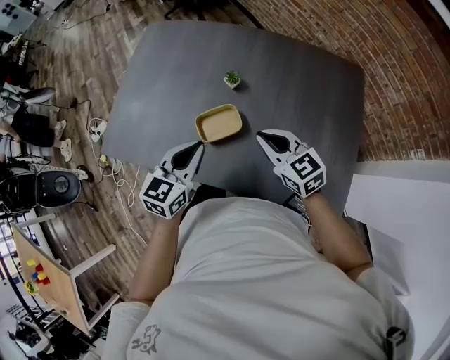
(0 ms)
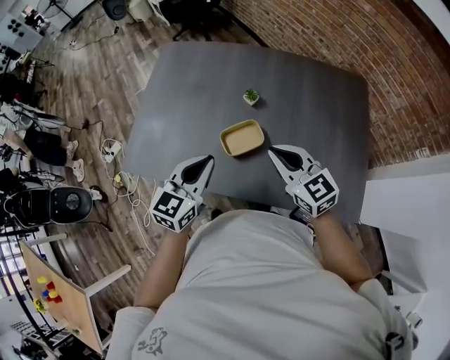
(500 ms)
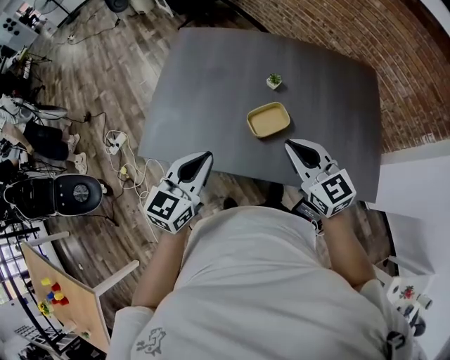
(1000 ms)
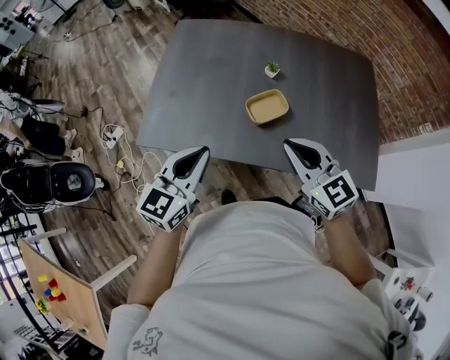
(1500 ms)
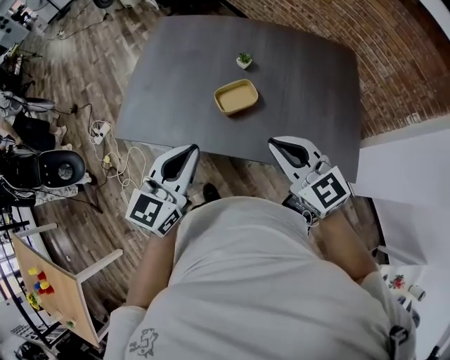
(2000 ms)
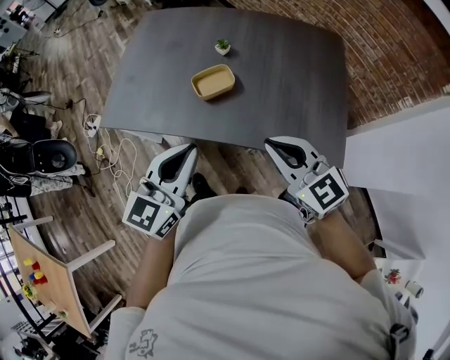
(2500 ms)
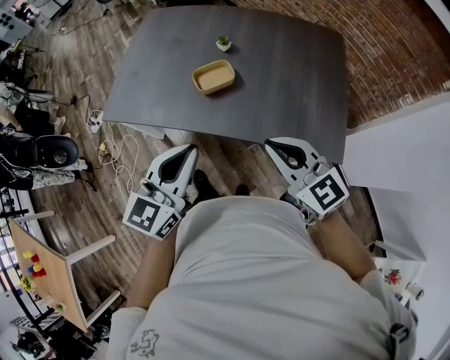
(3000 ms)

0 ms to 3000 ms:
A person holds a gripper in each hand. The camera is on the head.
0 ms to 1500 ms: Both grippers move to the left, backward and upward, about 20 cm.
1500 ms to 3000 ms: The grippers both shift to the right and backward by approximately 20 cm.

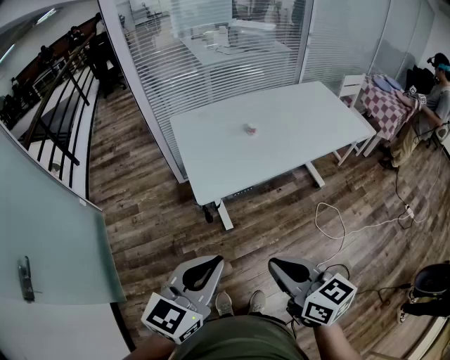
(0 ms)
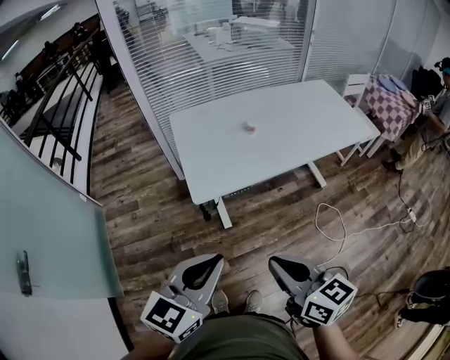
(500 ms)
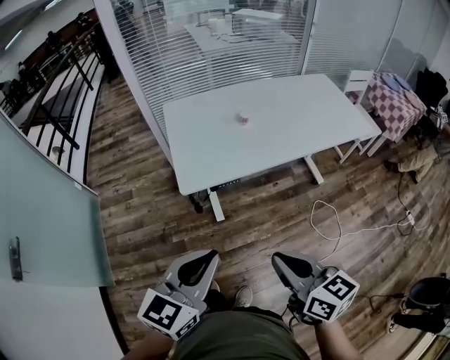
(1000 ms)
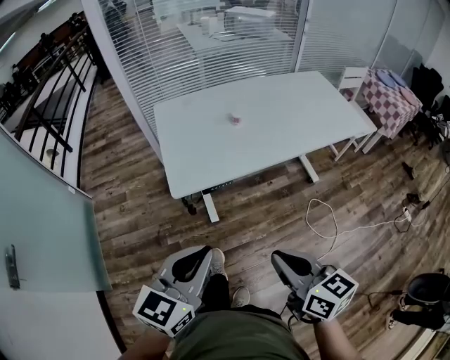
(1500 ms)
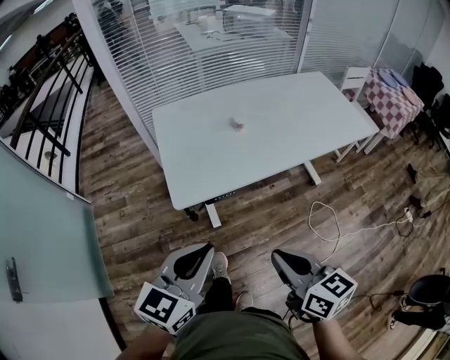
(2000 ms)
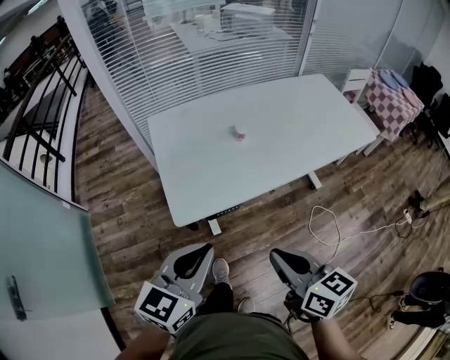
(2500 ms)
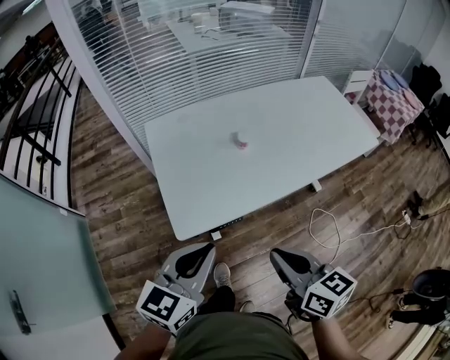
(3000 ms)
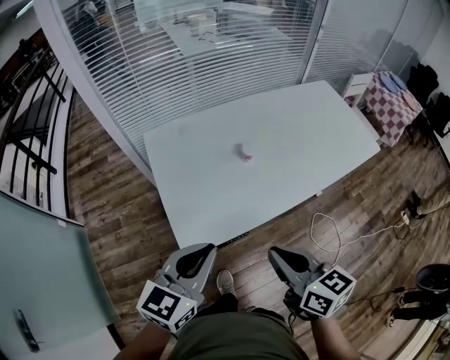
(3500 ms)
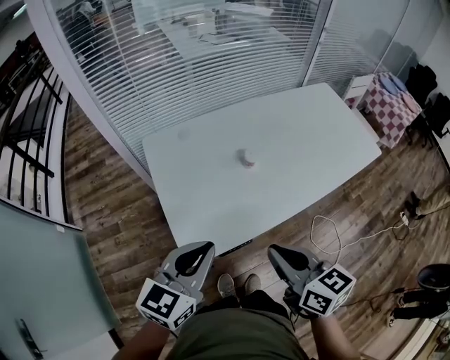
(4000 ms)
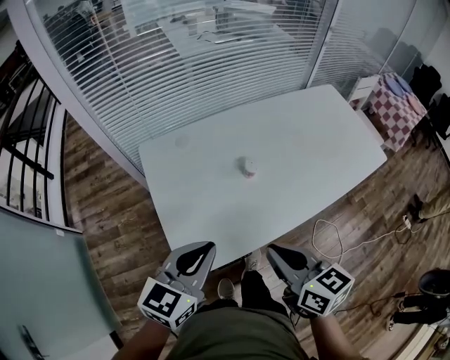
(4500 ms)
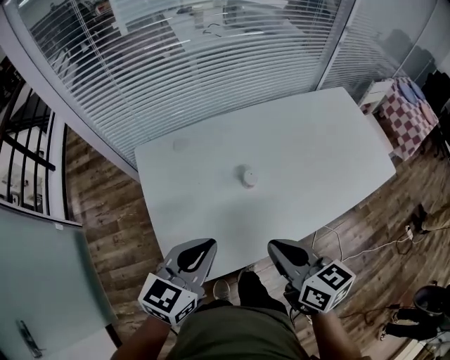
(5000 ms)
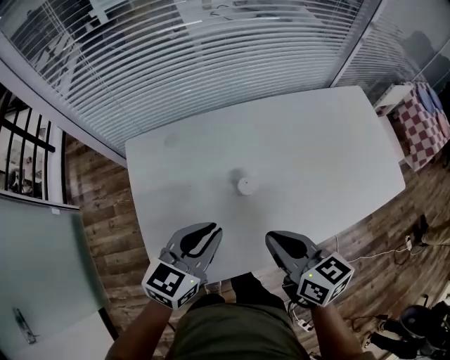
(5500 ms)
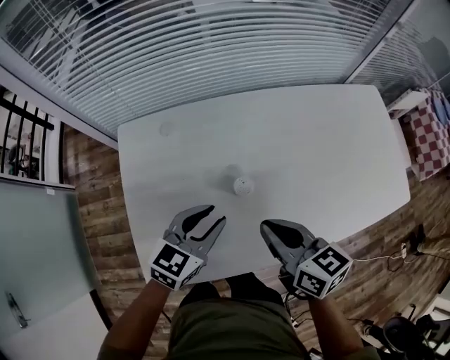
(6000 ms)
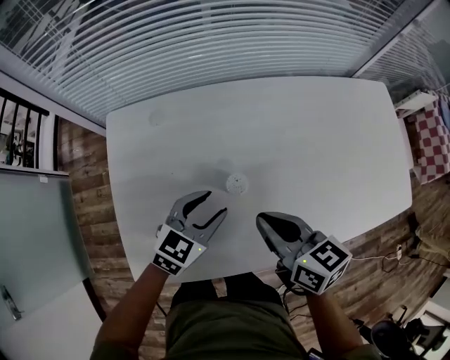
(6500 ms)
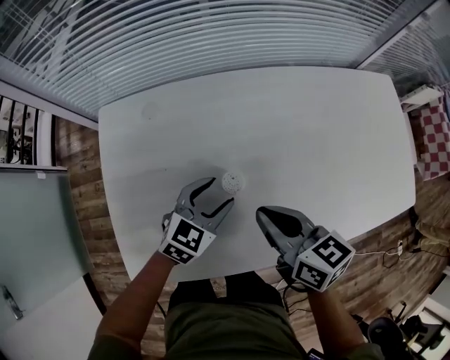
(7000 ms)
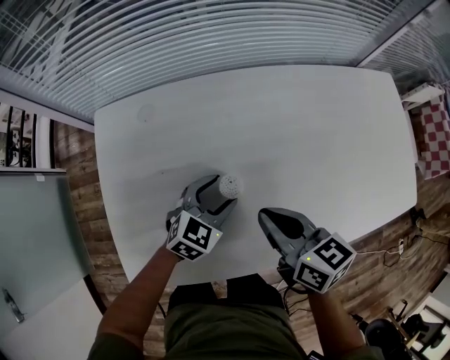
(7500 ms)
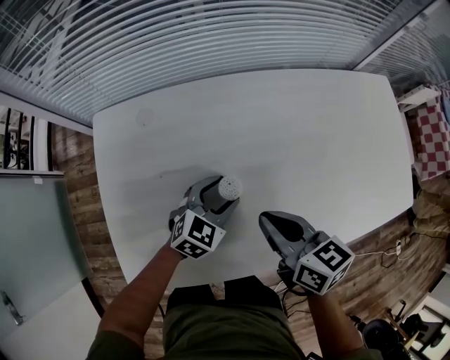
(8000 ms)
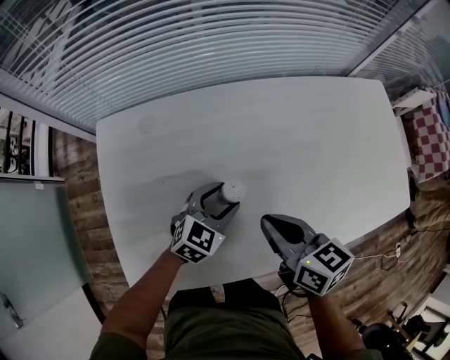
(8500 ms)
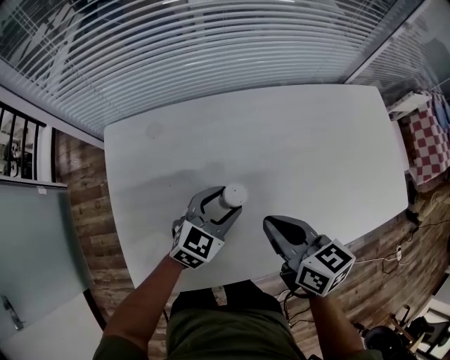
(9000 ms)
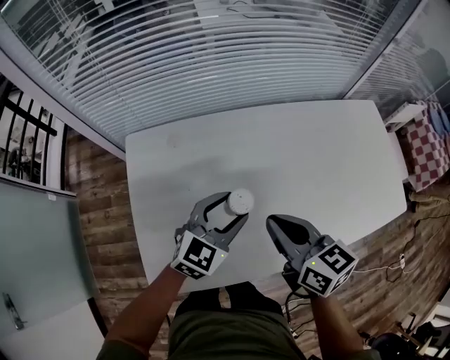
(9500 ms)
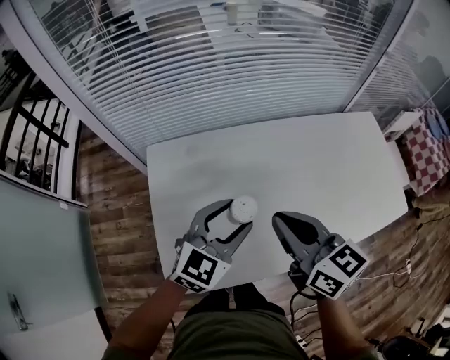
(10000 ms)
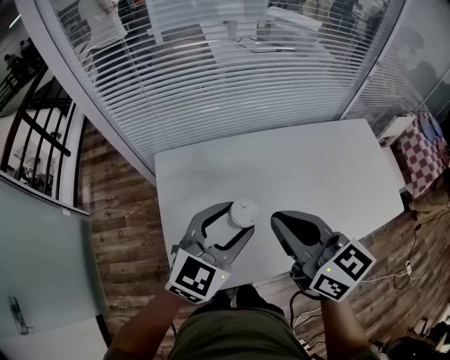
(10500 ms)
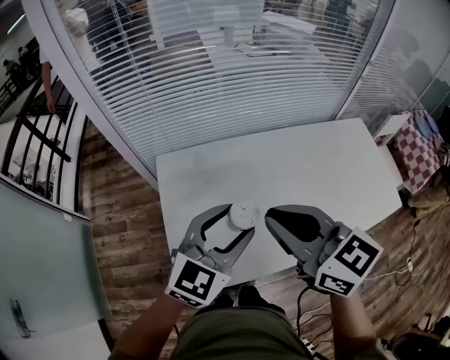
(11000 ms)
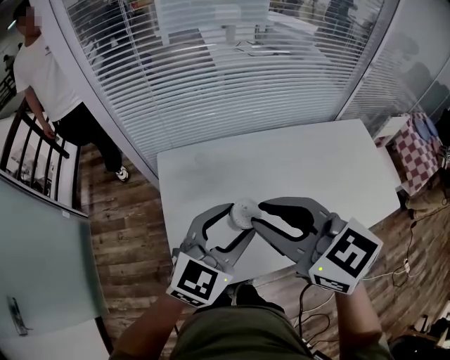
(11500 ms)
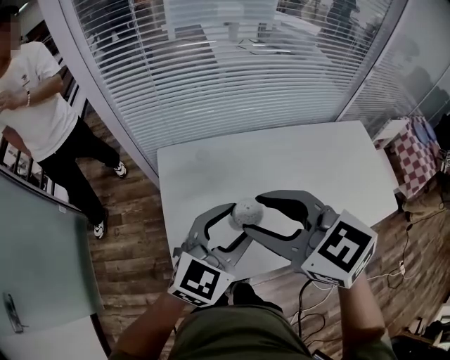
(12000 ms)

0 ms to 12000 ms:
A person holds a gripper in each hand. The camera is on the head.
0 ms to 2000 ms: The left gripper shifts approximately 10 cm forward and to the right. Meanwhile the right gripper moves to the right and forward, approximately 15 cm.
2000 ms to 4000 ms: Both grippers move forward, about 20 cm.
4000 ms to 6000 ms: The left gripper heads forward, downward and to the right, covering some 30 cm, and opens its fingers. The right gripper goes roughly 25 cm forward.
6000 ms to 8000 ms: The left gripper moves downward, to the right and forward, approximately 15 cm, and opens, while the right gripper is displaced downward by approximately 5 cm.
8000 ms to 10000 ms: The left gripper goes about 25 cm upward, while the right gripper travels upward and to the left by about 20 cm.
10000 ms to 12000 ms: The right gripper is displaced to the left and upward by some 15 cm, changes its angle by about 30 degrees, and opens its fingers; the left gripper heads upward and backward, covering approximately 10 cm.

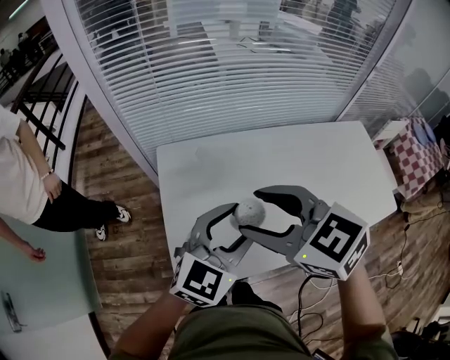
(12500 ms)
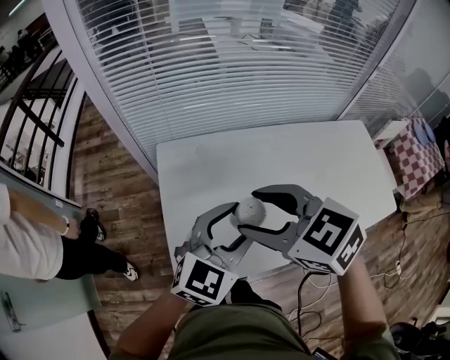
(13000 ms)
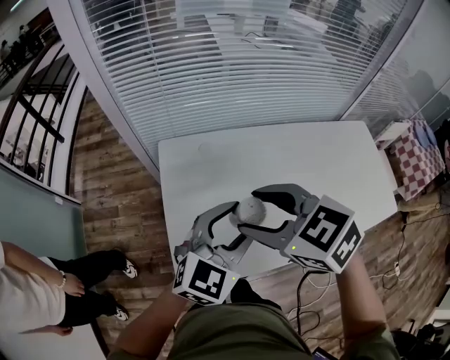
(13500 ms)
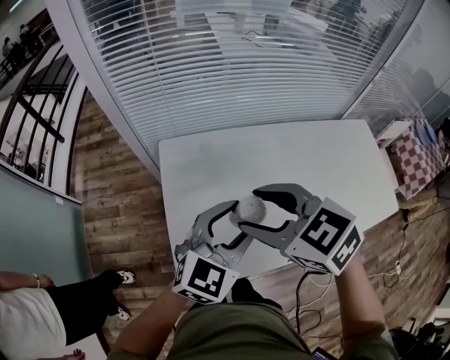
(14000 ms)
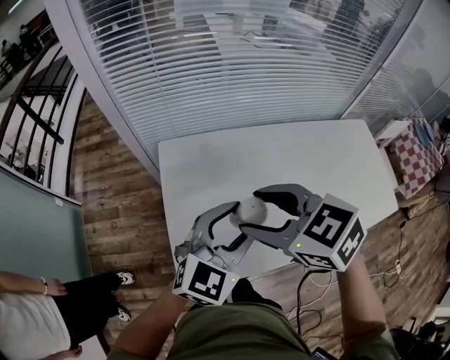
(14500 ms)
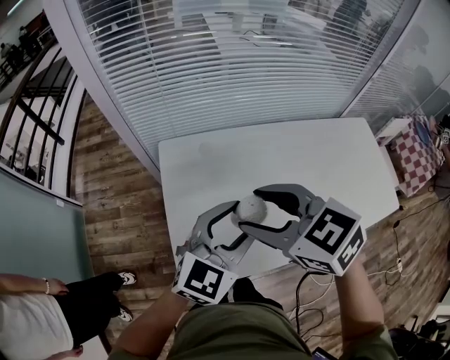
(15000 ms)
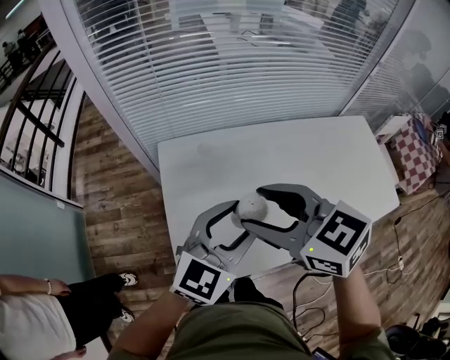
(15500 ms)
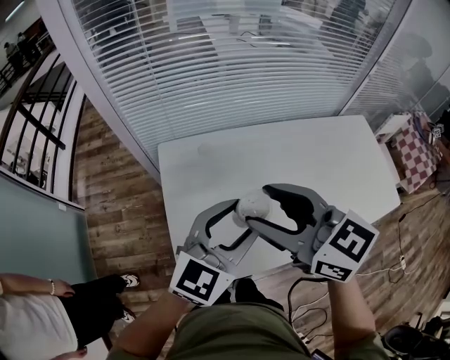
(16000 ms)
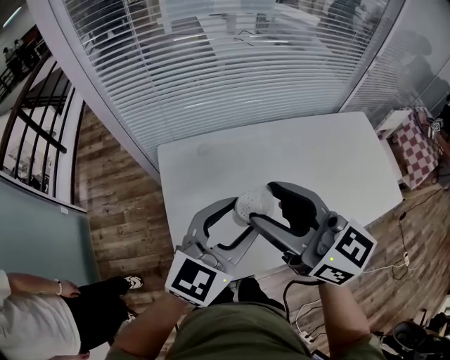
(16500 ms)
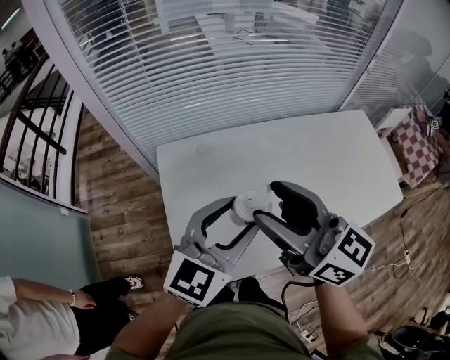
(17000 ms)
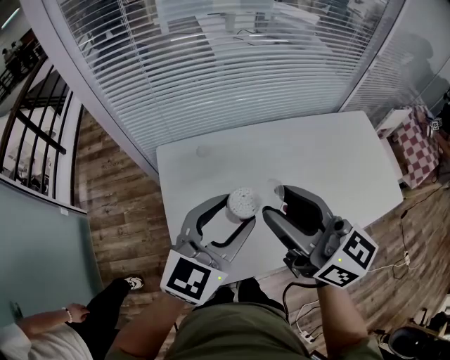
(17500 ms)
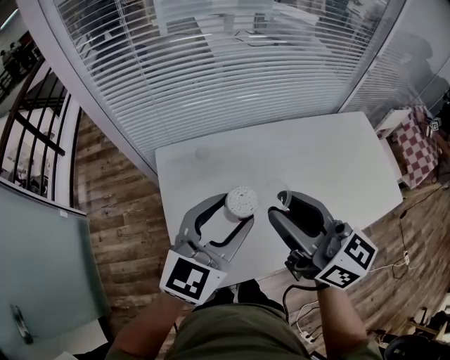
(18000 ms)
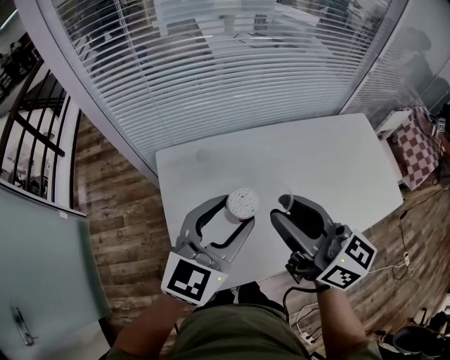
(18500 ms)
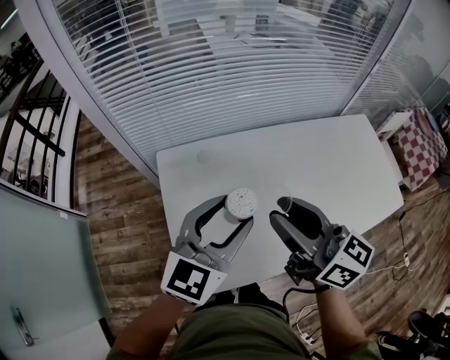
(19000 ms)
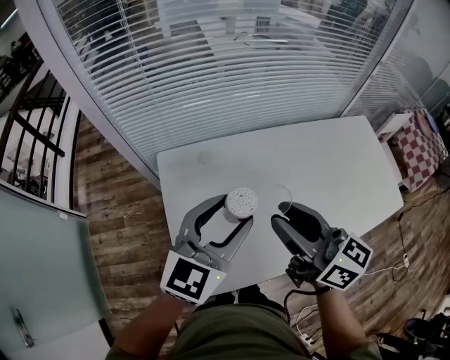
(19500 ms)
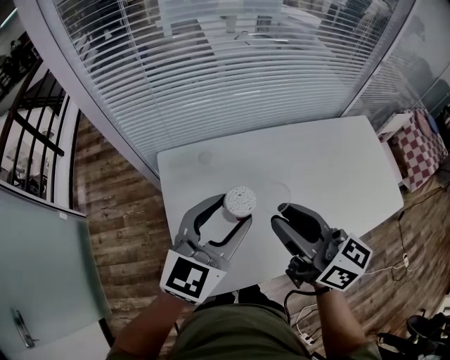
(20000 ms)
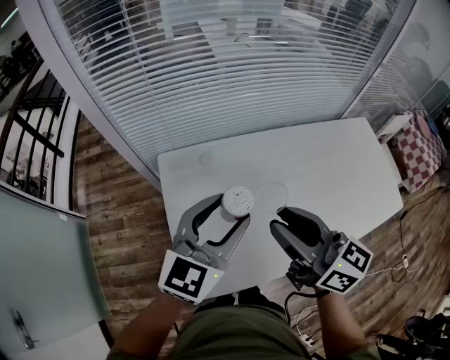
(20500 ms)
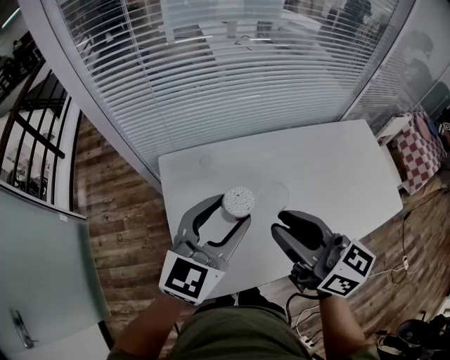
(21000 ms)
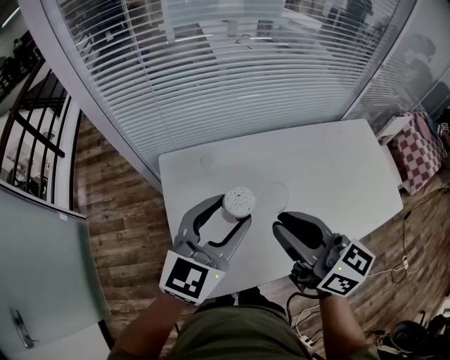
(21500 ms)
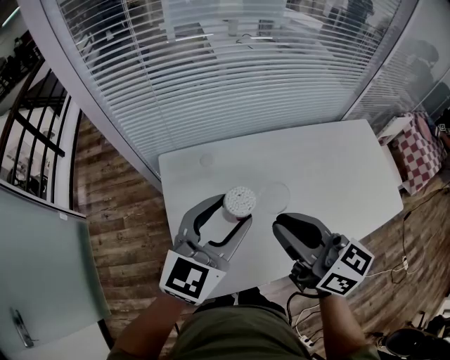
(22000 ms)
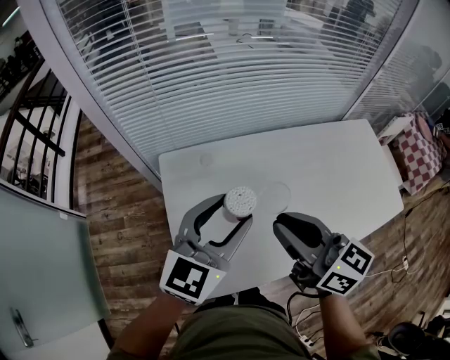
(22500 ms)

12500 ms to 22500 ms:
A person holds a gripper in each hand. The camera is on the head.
12500 ms to 14500 ms: There are only small adjustments of the grippers.
14500 ms to 16500 ms: The right gripper heads upward, covering approximately 5 cm, and tips its fingers upward by some 40 degrees.
16500 ms to 18500 ms: The right gripper closes its fingers.
18500 ms to 20500 ms: The grippers move only a little.
20500 ms to 22500 ms: Both grippers stay about where they are.

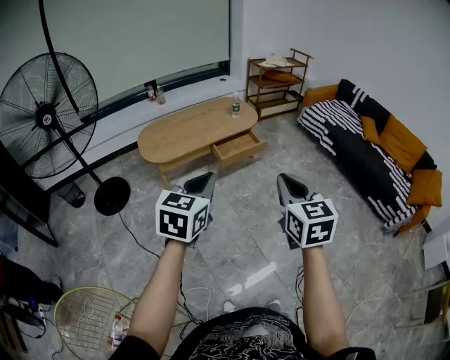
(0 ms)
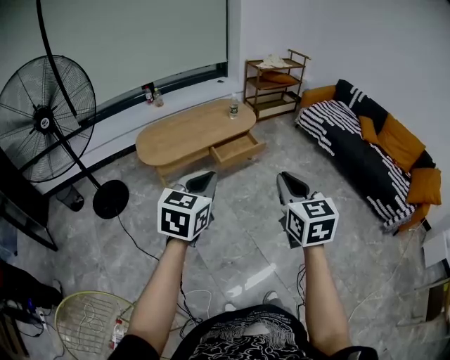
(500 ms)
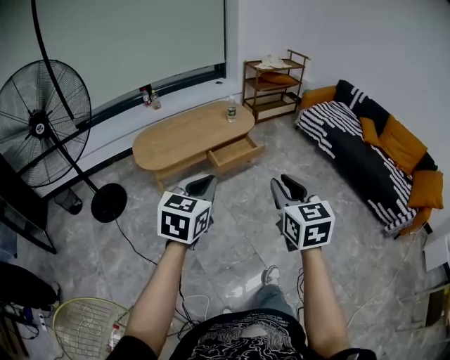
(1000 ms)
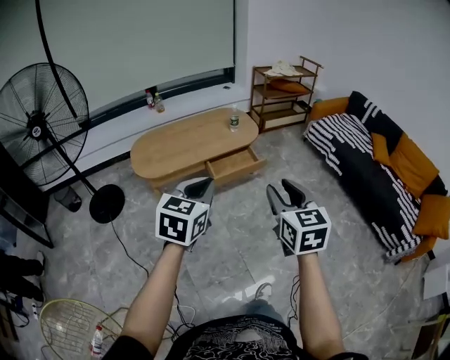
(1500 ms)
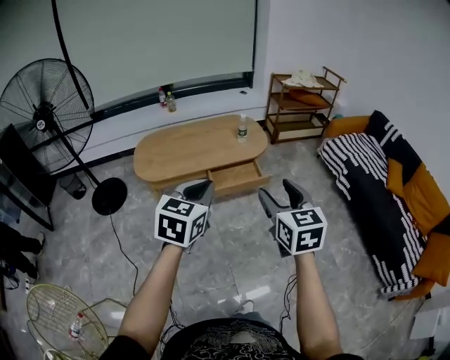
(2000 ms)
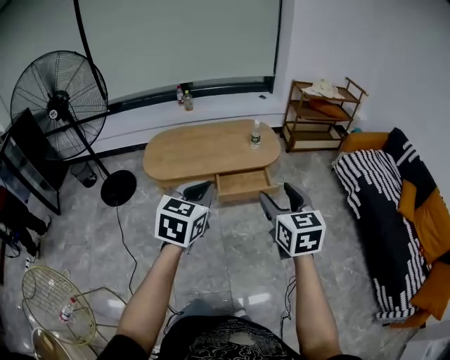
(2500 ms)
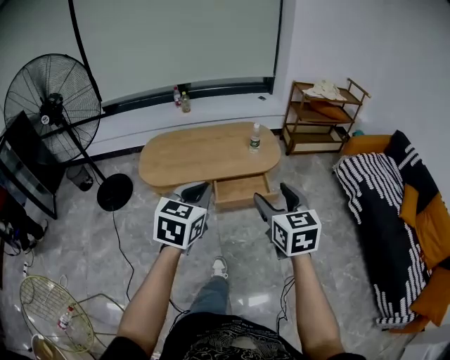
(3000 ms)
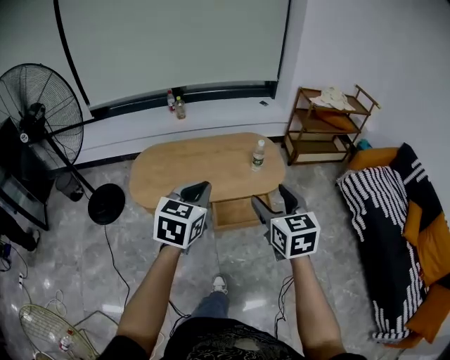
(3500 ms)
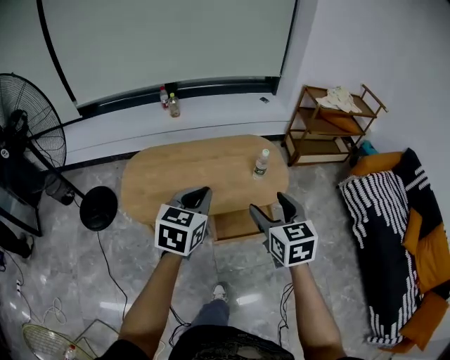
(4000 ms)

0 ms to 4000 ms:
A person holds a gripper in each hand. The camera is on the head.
0 ms to 2000 ms: The left gripper heads forward and to the right, covering some 30 cm, while the right gripper is displaced forward by roughly 30 cm, and opens up.
2000 ms to 4000 ms: Both grippers move forward, about 40 cm.
